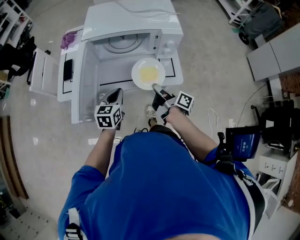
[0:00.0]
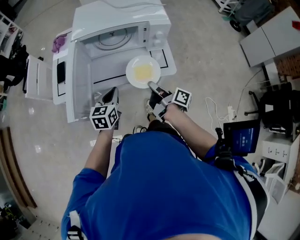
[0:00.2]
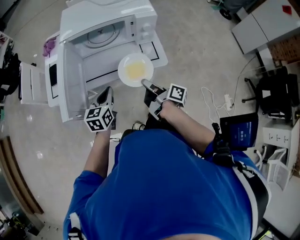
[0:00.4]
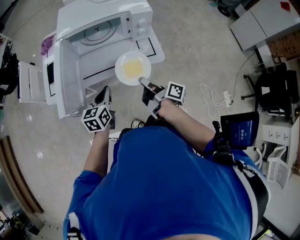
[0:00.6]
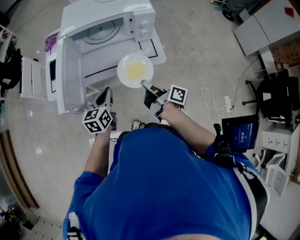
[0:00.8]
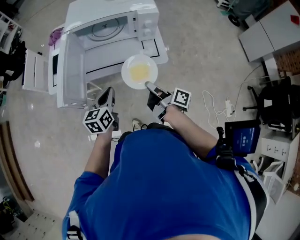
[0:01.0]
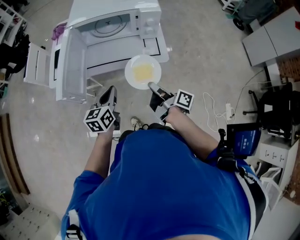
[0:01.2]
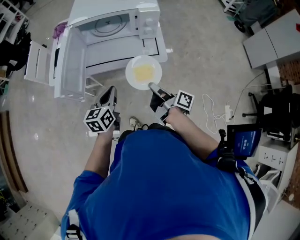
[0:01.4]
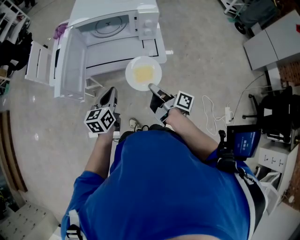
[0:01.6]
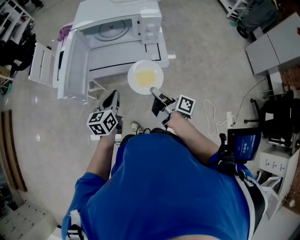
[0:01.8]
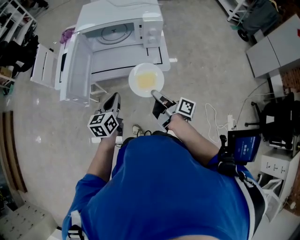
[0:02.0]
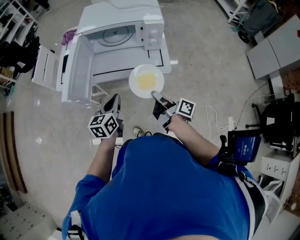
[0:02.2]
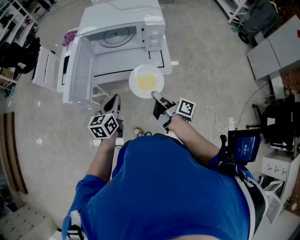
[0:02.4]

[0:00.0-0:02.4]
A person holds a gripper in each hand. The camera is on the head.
0.0 to 1.2 s: Both grippers travel together backward, roughly 10 cm.
1.2 to 2.4 s: The grippers make only small movements.

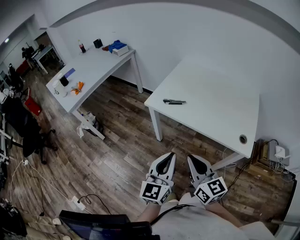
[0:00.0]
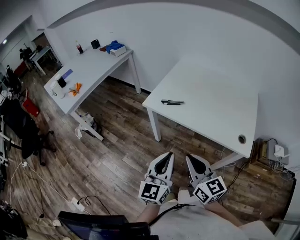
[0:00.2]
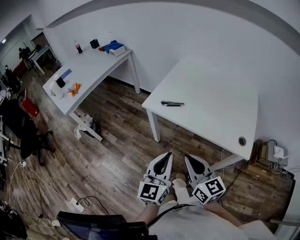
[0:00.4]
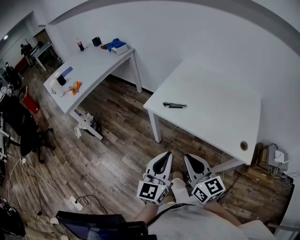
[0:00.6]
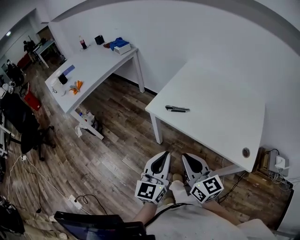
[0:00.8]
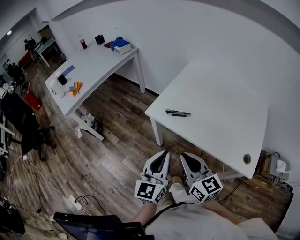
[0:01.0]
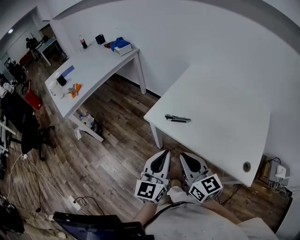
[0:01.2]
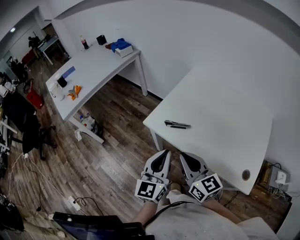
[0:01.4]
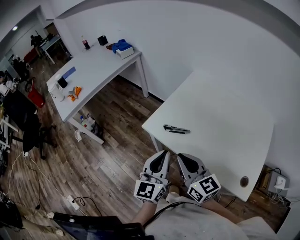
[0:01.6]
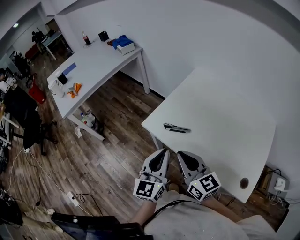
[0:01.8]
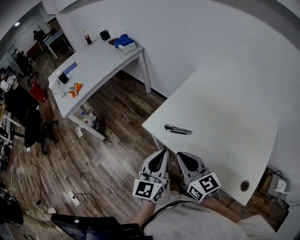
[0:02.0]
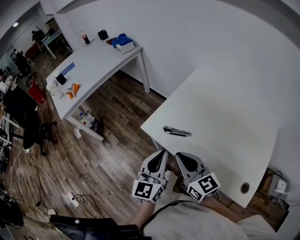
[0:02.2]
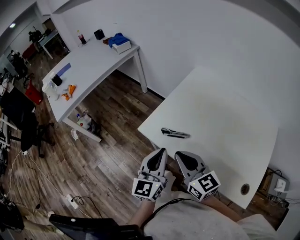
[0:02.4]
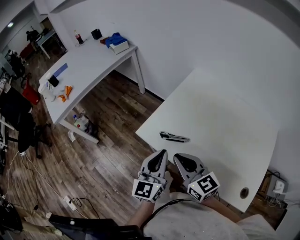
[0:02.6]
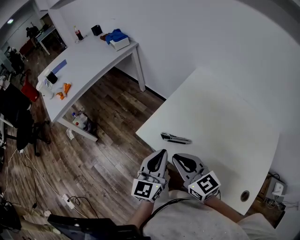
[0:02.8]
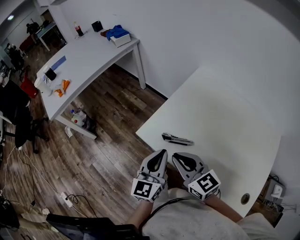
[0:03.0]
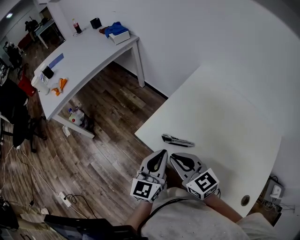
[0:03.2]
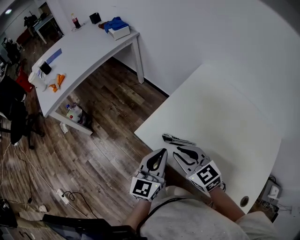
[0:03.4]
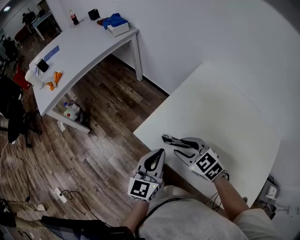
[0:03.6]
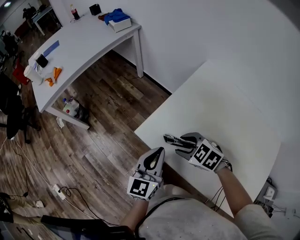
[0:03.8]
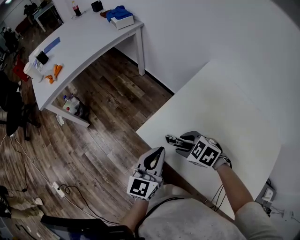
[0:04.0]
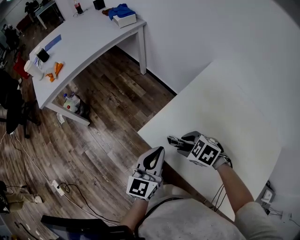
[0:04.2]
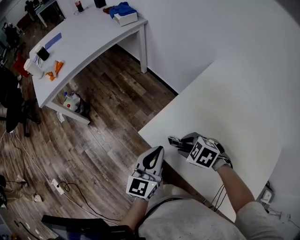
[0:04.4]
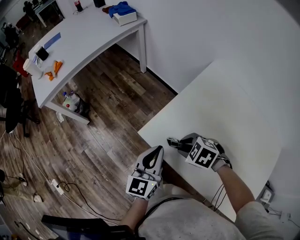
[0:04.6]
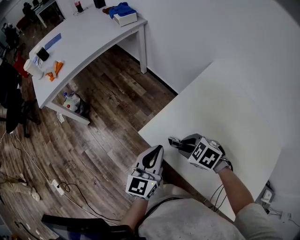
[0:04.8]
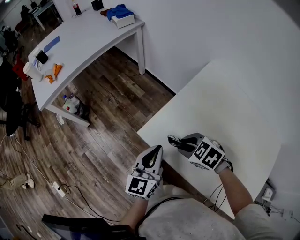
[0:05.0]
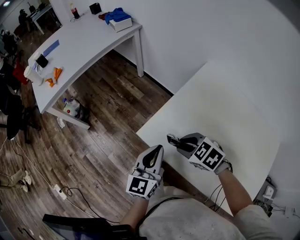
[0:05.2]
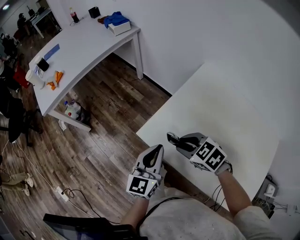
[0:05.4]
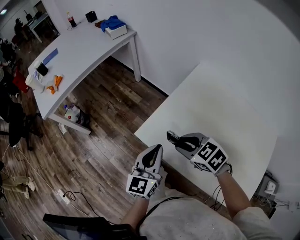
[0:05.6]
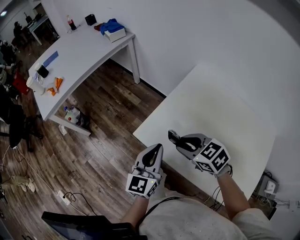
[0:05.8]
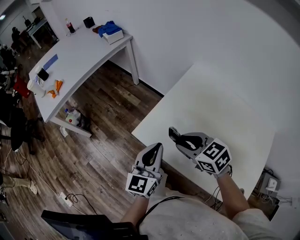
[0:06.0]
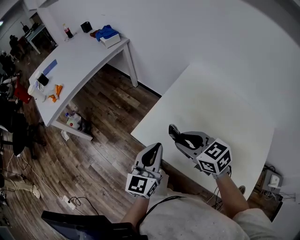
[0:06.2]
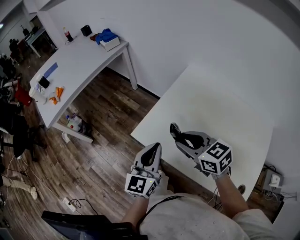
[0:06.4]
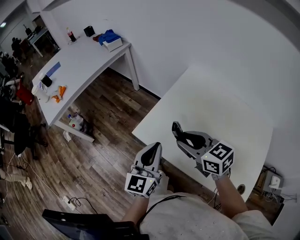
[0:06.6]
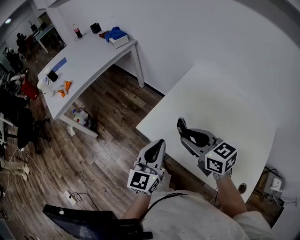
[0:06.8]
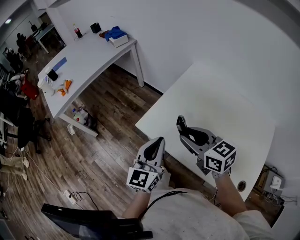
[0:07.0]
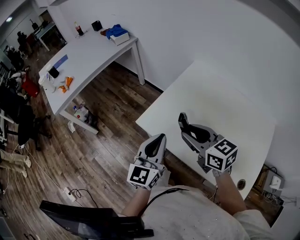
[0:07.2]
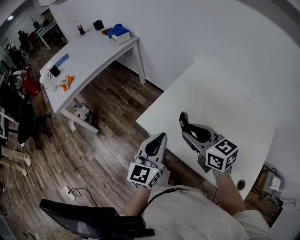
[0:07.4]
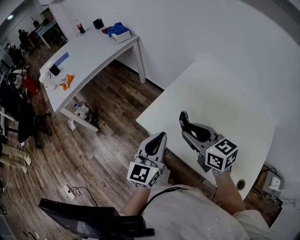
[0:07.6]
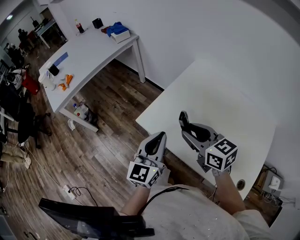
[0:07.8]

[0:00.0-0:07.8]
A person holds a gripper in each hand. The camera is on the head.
0.0 to 1.6 s: The grippers both shift forward by some 25 cm.
1.6 to 3.2 s: Both grippers move forward and downward, approximately 15 cm. The right gripper rotates about 20 degrees.
3.2 to 4.6 s: The right gripper is displaced downward and forward by approximately 15 cm, tilts its fingers approximately 50 degrees downward, and opens its fingers. The left gripper travels forward by some 5 cm.
4.6 to 6.2 s: The left gripper shifts approximately 10 cm upward. The right gripper moves upward, some 15 cm, and tips its fingers upward by about 40 degrees.
6.2 to 7.8 s: The right gripper ends up some 5 cm from where it was.

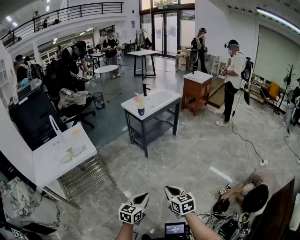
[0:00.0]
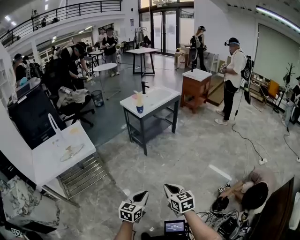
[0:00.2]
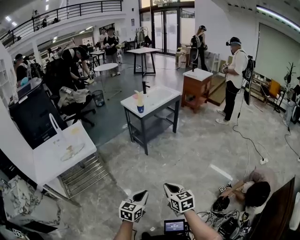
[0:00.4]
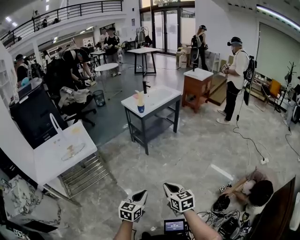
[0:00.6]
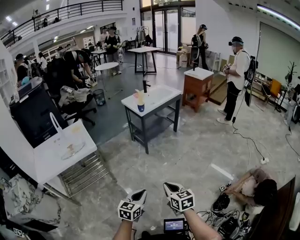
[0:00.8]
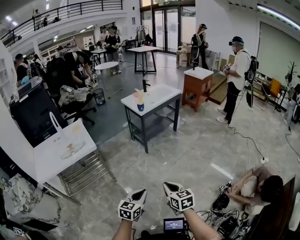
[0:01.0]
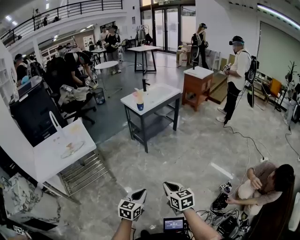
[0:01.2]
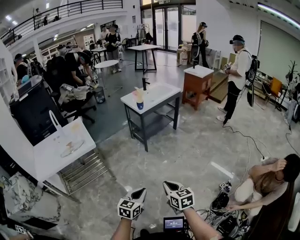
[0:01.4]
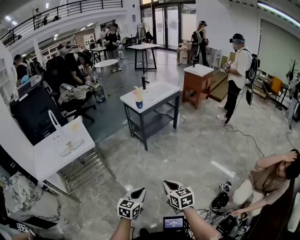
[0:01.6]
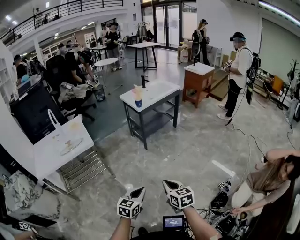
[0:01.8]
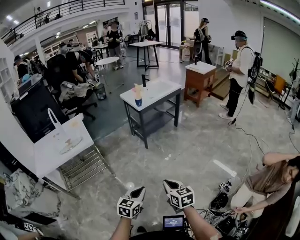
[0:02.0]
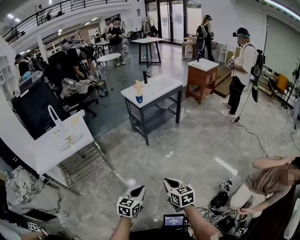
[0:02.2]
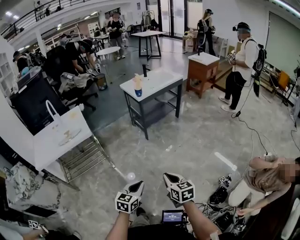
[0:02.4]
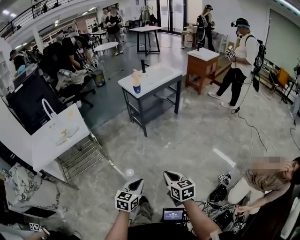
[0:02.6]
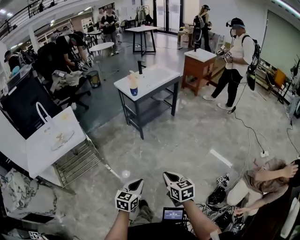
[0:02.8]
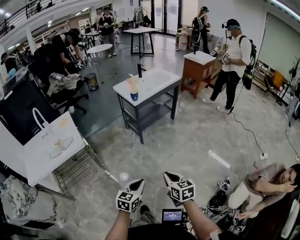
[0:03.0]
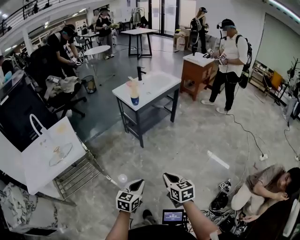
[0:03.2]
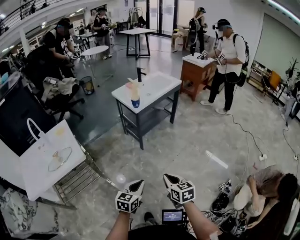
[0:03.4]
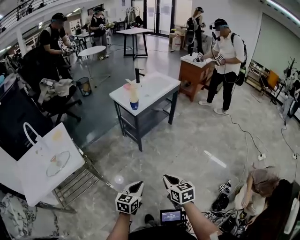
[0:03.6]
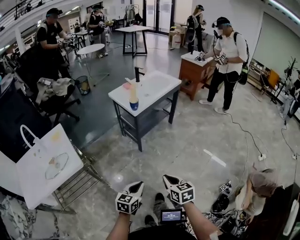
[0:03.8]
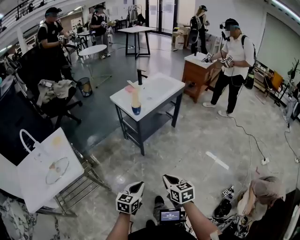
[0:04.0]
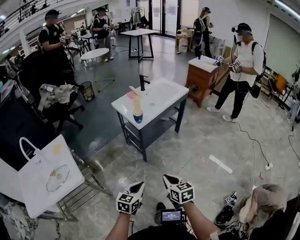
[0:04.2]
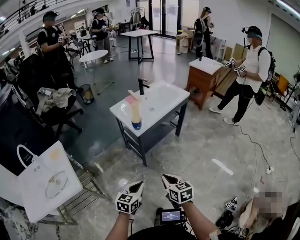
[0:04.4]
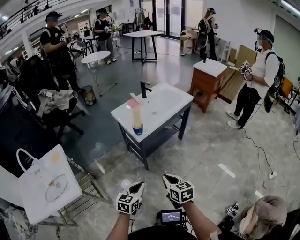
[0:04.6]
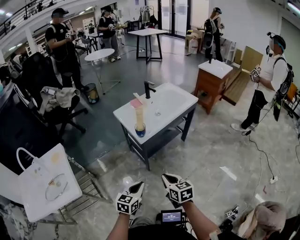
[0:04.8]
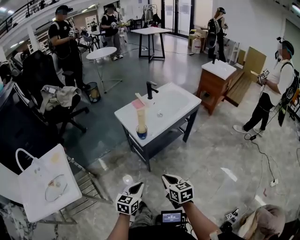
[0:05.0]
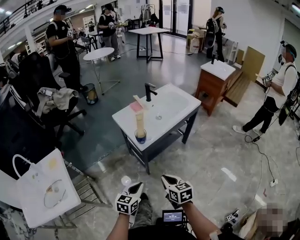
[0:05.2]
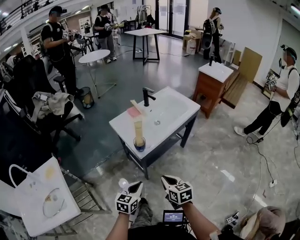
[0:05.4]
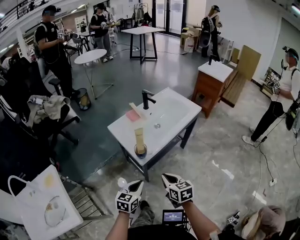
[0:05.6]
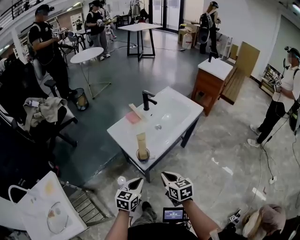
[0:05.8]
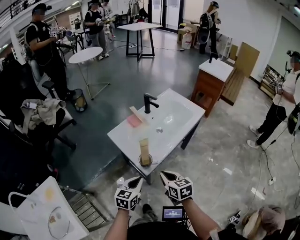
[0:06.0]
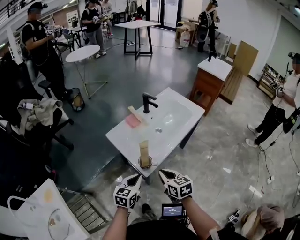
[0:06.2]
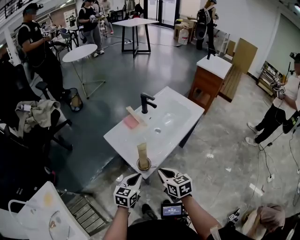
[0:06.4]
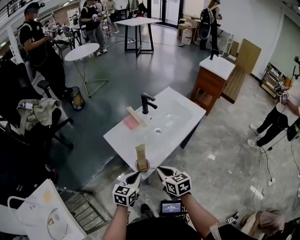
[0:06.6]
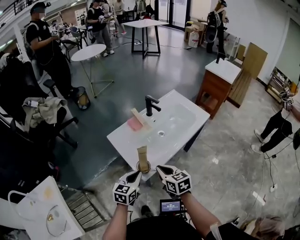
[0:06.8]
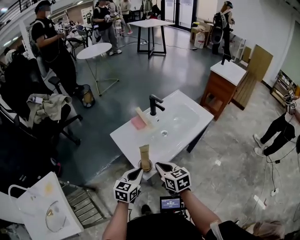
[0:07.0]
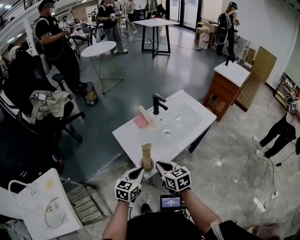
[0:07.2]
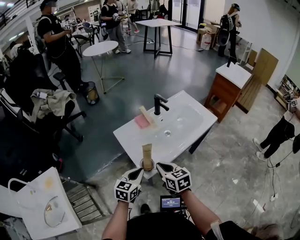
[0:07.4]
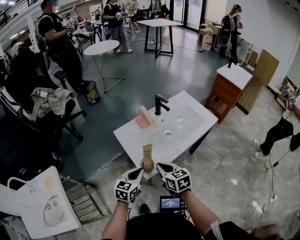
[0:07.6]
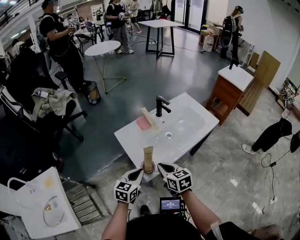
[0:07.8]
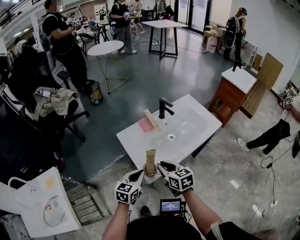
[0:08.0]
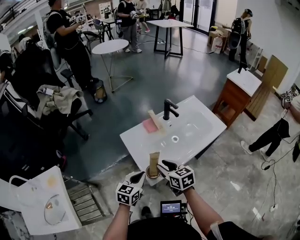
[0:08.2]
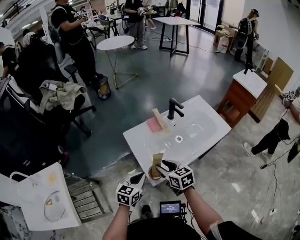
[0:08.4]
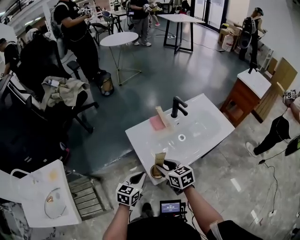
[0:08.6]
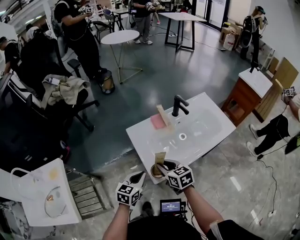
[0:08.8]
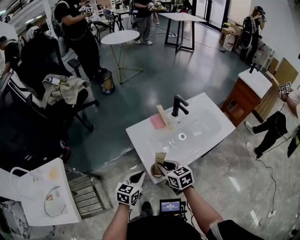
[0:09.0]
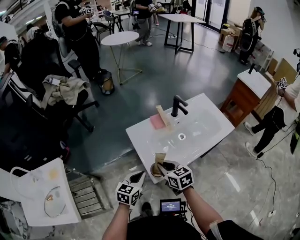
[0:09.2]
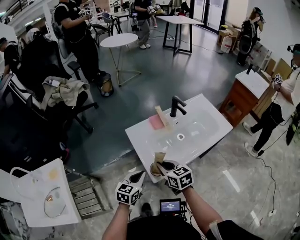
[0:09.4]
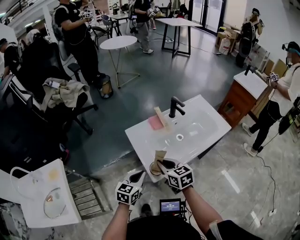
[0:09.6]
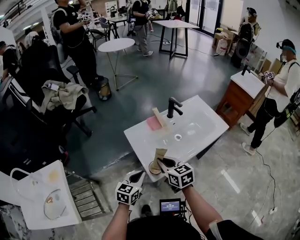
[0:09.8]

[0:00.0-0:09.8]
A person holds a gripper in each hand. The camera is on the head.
0.0 to 1.4 s: There are only small adjustments of the grippers.
1.4 to 2.8 s: Both grippers move forward, roughly 10 cm.
2.8 to 4.2 s: Both grippers travel together forward, roughly 30 cm.
4.2 to 5.6 s: The grippers both shift forward by about 30 cm.
5.6 to 7.0 s: Both grippers travel together forward, roughly 15 cm.
7.0 to 8.4 s: The right gripper goes some 5 cm forward, and opens.
8.4 to 9.8 s: The right gripper closes.

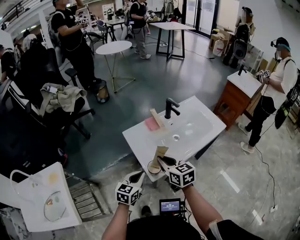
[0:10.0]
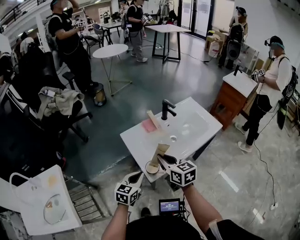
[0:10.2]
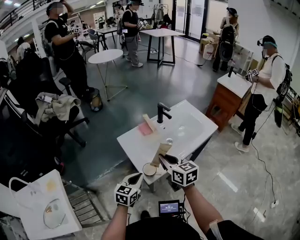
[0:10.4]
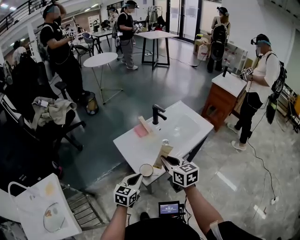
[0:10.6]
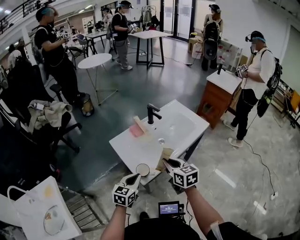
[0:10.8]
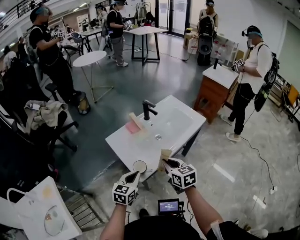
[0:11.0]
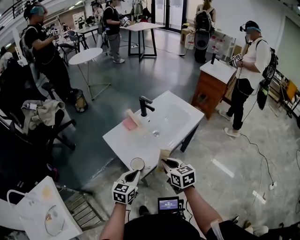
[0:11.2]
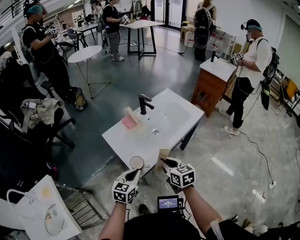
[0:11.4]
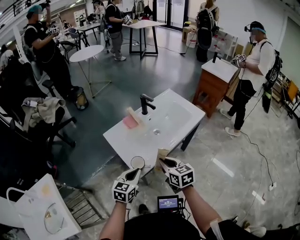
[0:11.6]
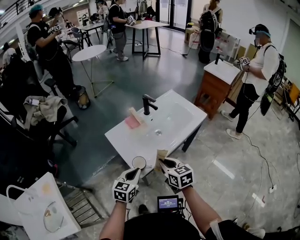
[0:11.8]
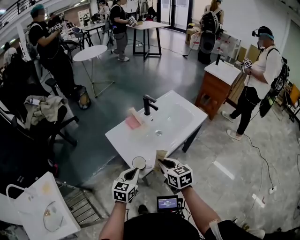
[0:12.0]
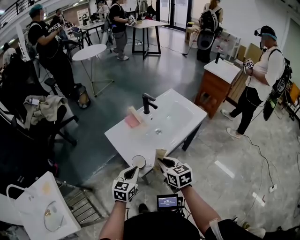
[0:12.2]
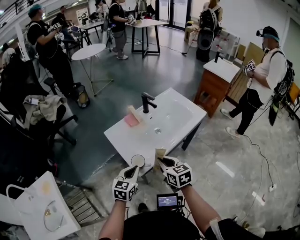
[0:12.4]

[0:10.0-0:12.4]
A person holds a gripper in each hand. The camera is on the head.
10.0 to 11.2 s: The right gripper travels to the right by about 10 cm, while the left gripper travels to the right by about 5 cm.
11.2 to 12.4 s: The grippers move only a little.

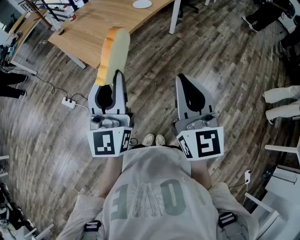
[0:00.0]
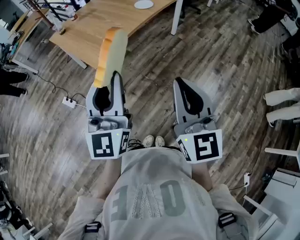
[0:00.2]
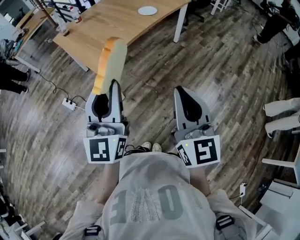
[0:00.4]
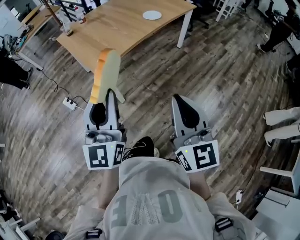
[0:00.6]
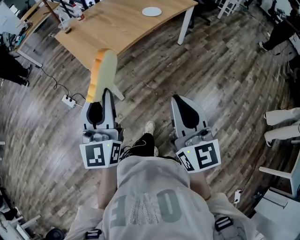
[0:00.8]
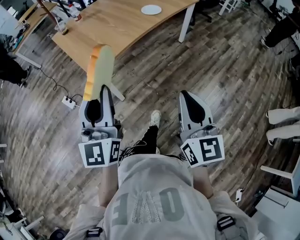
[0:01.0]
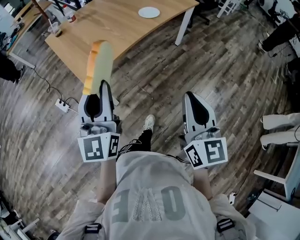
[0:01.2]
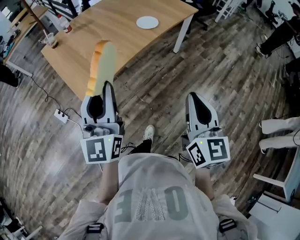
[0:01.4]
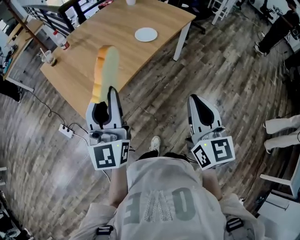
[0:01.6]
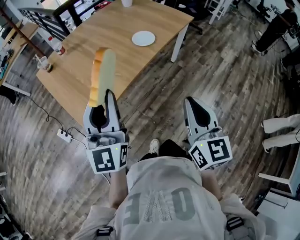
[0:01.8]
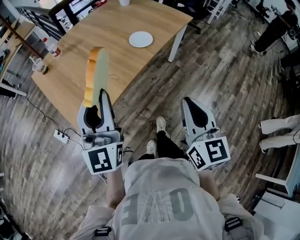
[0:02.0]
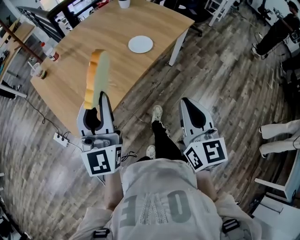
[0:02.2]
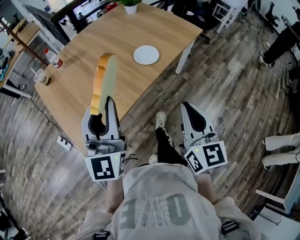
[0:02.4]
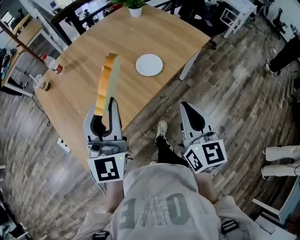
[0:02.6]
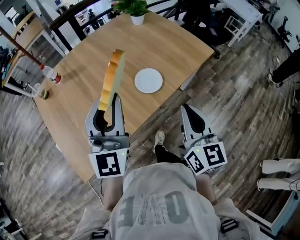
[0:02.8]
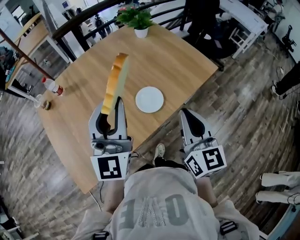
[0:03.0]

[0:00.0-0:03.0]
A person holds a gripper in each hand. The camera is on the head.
0.0 to 1.6 s: Both grippers move forward, roughly 25 cm.
1.6 to 3.0 s: The two grippers go about 35 cm forward.
